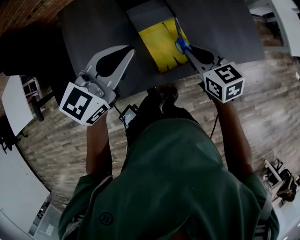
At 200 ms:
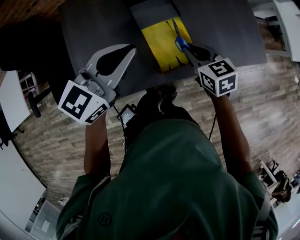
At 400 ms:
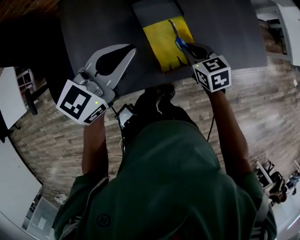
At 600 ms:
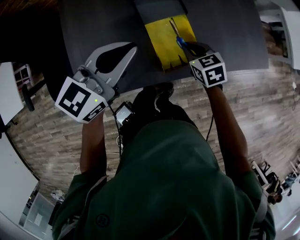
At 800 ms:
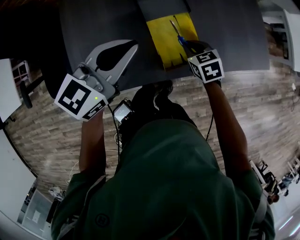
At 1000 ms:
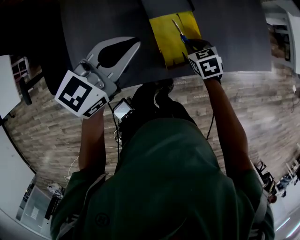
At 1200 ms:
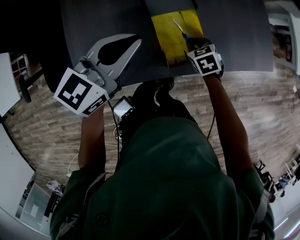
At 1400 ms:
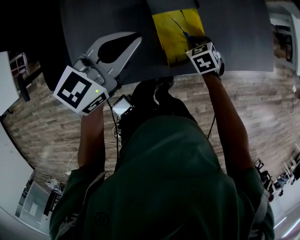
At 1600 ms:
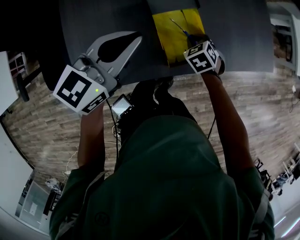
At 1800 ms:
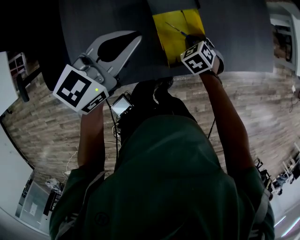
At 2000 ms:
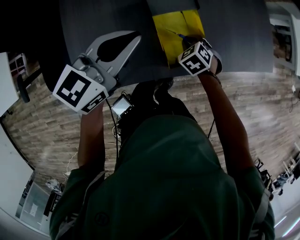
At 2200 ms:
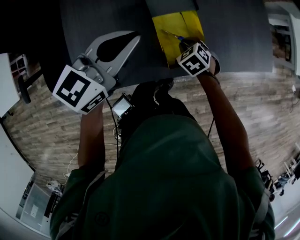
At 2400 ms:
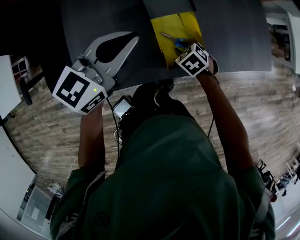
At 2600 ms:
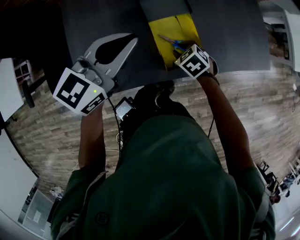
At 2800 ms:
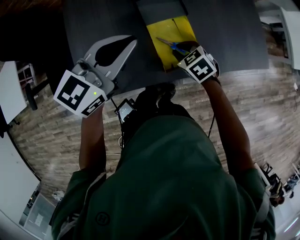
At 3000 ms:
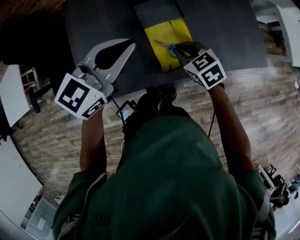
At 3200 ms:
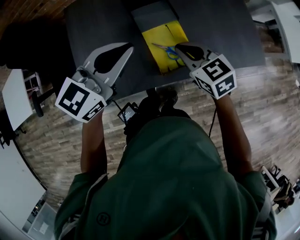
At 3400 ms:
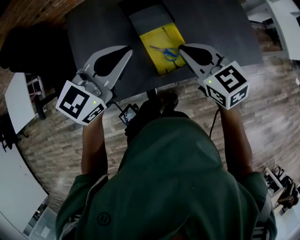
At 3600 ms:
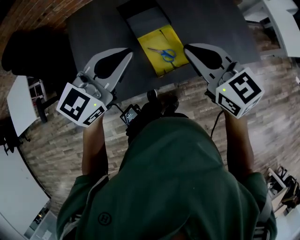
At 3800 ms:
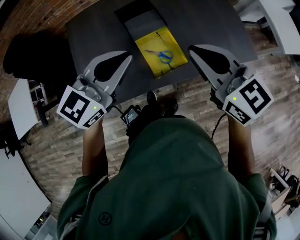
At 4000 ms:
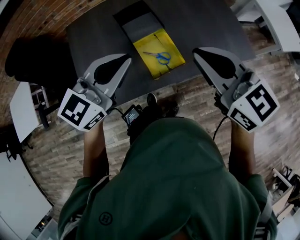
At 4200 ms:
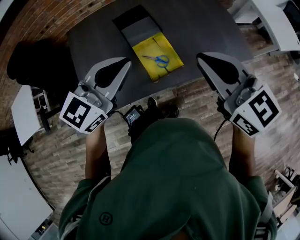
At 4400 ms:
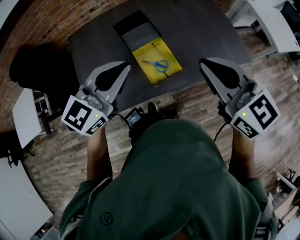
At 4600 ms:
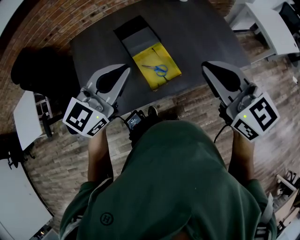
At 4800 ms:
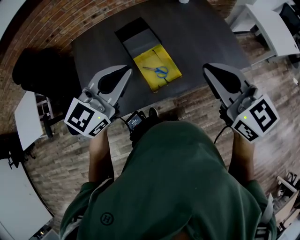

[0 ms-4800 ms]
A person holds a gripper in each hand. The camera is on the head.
0 ms to 1600 ms: The left gripper goes some 5 cm downward; the right gripper travels downward by some 20 cm, and tilts its fingers roughly 30 degrees downward.
1600 ms to 3200 ms: The right gripper heads upward, covering about 20 cm, and points its fingers roughly 30 degrees further upward; the left gripper heads upward, covering approximately 10 cm.
3200 ms to 4800 ms: The right gripper heads upward, to the right and backward, covering approximately 25 cm, and swivels roughly 30 degrees. Meanwhile the left gripper shifts approximately 10 cm upward, backward and to the right.

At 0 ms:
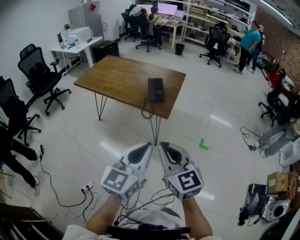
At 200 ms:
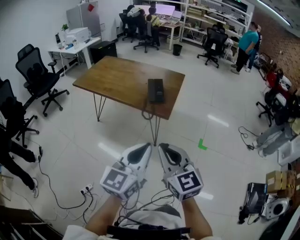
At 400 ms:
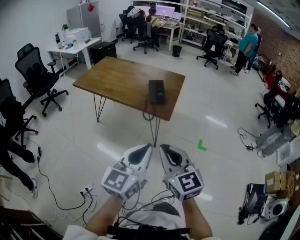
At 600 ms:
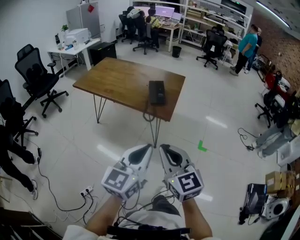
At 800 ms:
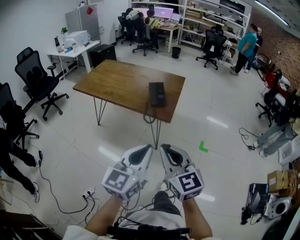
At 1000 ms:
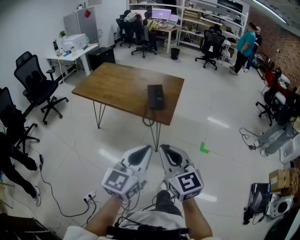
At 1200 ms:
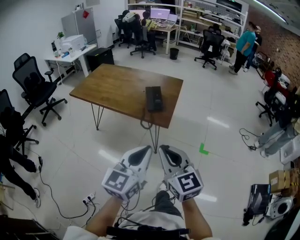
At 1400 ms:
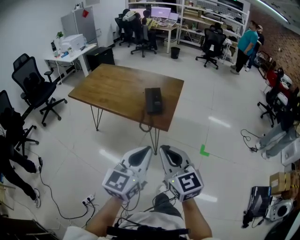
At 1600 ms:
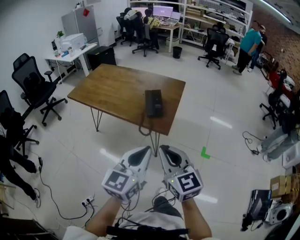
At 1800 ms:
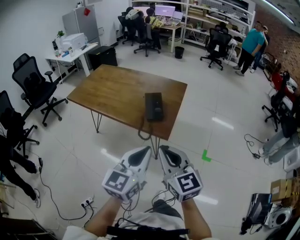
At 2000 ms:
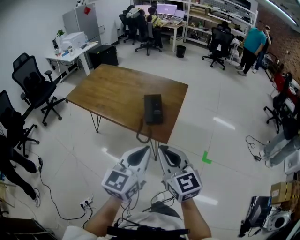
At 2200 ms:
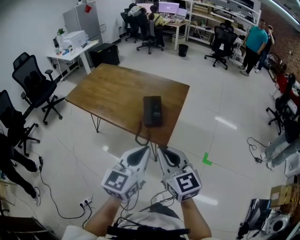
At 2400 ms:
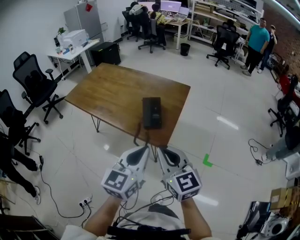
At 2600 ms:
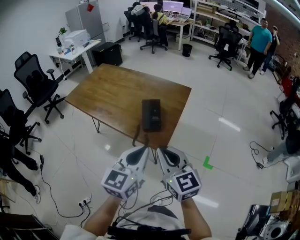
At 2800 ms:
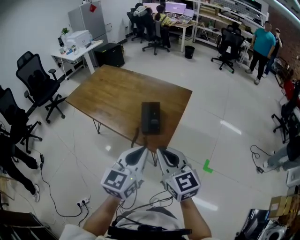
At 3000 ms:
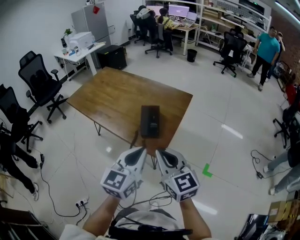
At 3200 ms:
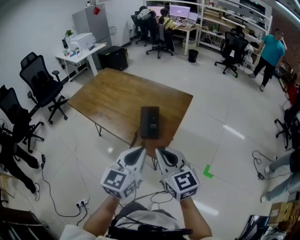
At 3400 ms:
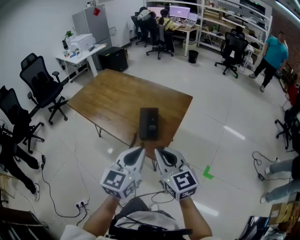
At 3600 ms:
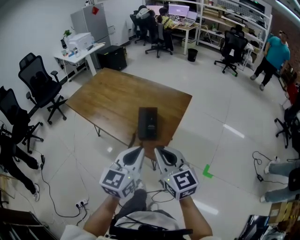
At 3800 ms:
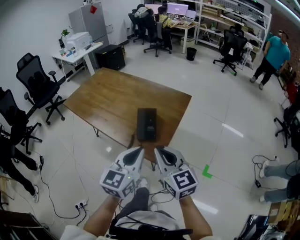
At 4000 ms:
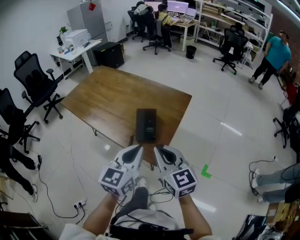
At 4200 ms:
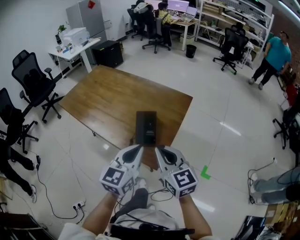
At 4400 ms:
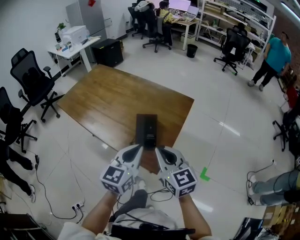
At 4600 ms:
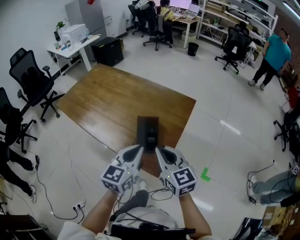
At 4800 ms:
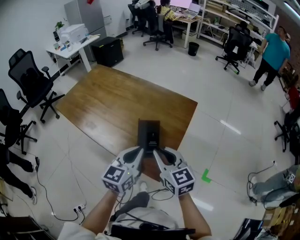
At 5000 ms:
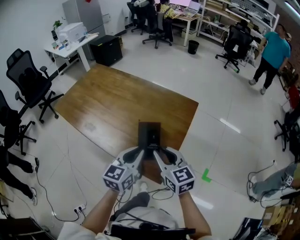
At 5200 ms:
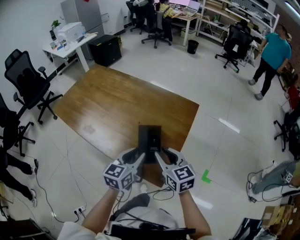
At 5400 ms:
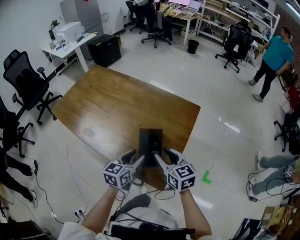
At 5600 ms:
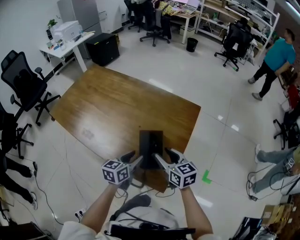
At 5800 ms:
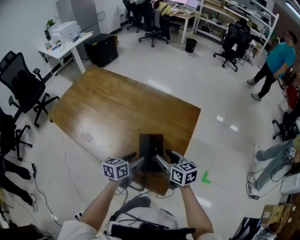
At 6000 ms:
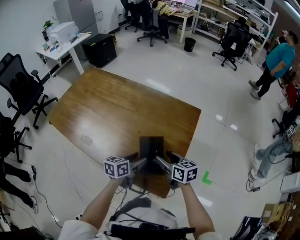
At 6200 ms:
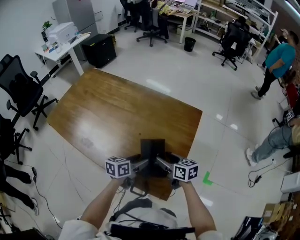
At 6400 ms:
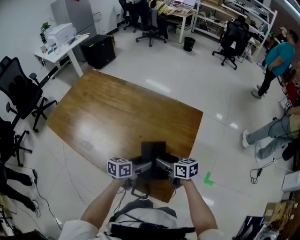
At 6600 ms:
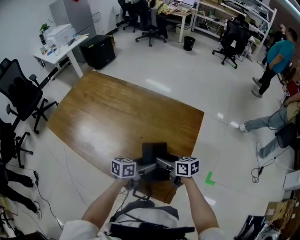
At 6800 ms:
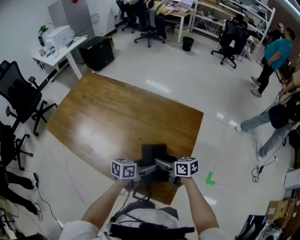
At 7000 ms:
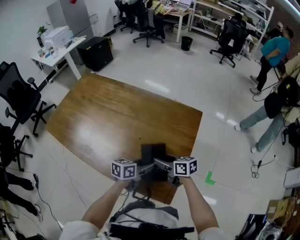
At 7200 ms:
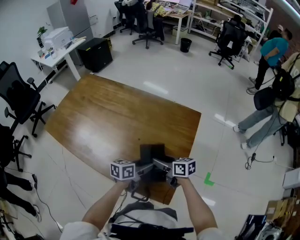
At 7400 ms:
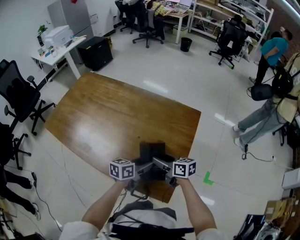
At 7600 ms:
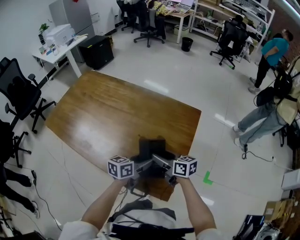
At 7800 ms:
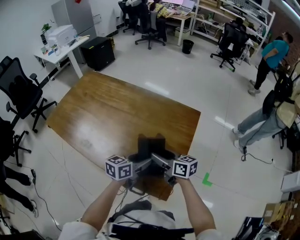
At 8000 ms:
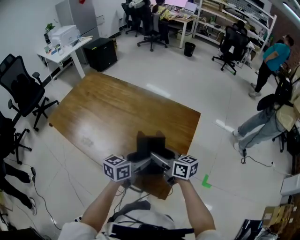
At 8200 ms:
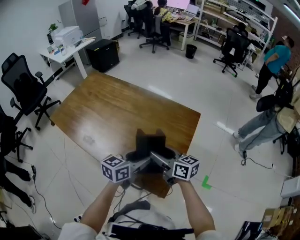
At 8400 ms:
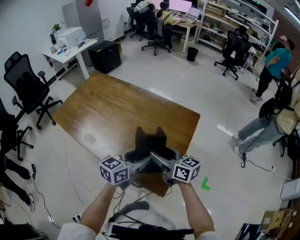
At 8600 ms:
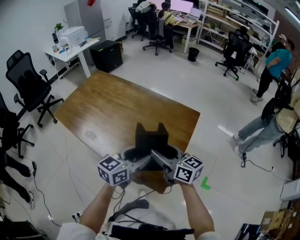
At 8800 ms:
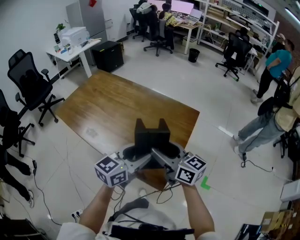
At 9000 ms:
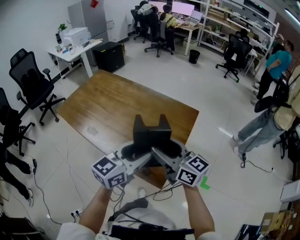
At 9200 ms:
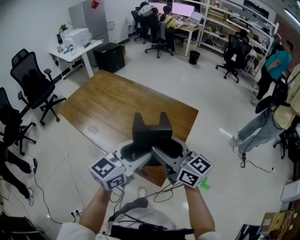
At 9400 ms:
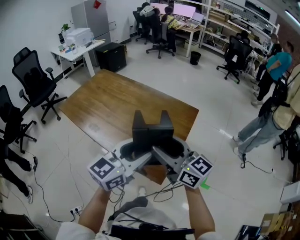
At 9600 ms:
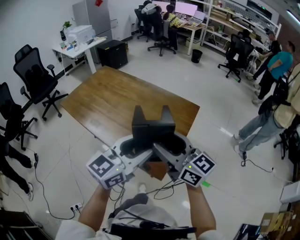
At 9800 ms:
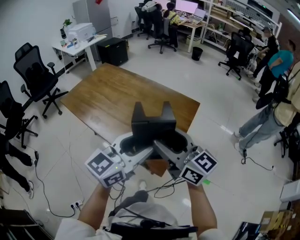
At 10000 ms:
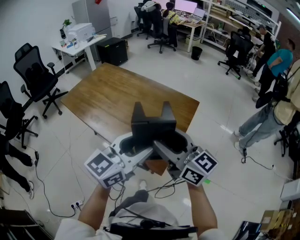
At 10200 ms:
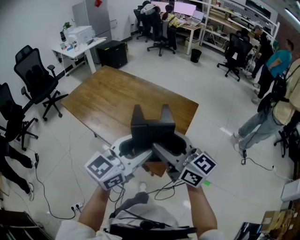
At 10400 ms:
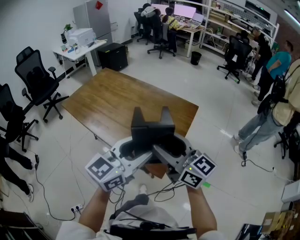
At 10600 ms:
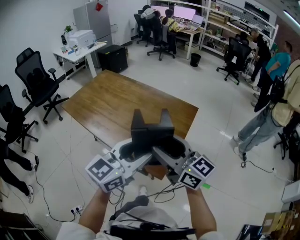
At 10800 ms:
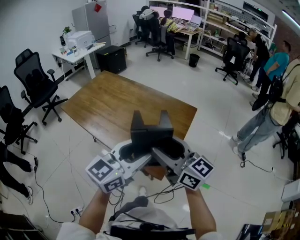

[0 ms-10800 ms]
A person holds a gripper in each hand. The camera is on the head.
0 ms to 1600 ms: Both grippers move forward, about 10 cm.
1600 ms to 3000 ms: Both grippers travel together forward, about 15 cm.
3000 ms to 4600 ms: The left gripper is displaced forward and downward by some 15 cm. The right gripper is displaced forward by approximately 15 cm.
4600 ms to 6200 ms: Both grippers travel together downward and forward, some 25 cm. The right gripper changes its angle by roughly 30 degrees, and opens, while the left gripper swivels about 40 degrees, and opens.
6200 ms to 7800 ms: Both grippers travel together upward, some 5 cm.
7800 ms to 9200 ms: Both grippers travel together upward and backward, about 25 cm. The right gripper changes its angle by some 30 degrees. The left gripper changes its angle by roughly 30 degrees.
9200 ms to 10800 ms: Both grippers travel together backward, roughly 5 cm.

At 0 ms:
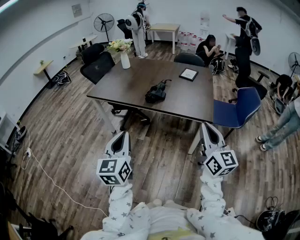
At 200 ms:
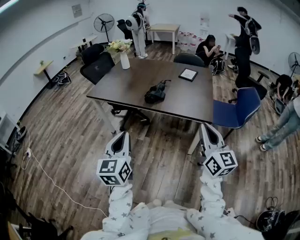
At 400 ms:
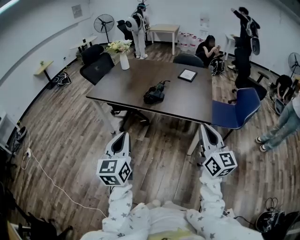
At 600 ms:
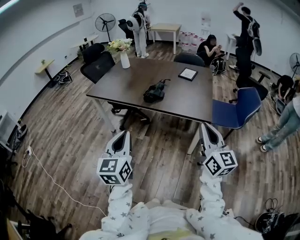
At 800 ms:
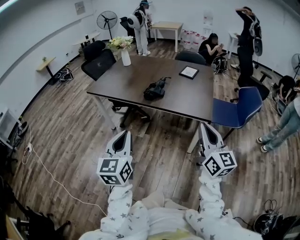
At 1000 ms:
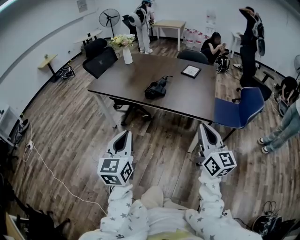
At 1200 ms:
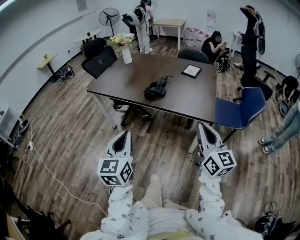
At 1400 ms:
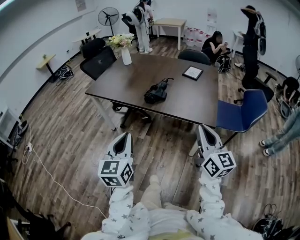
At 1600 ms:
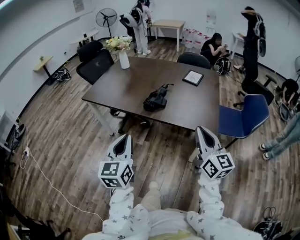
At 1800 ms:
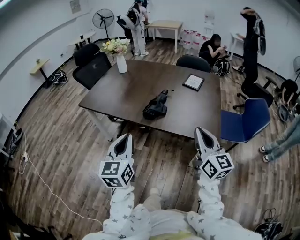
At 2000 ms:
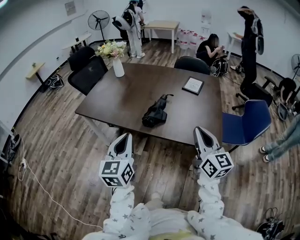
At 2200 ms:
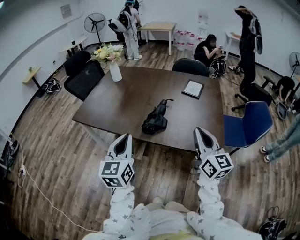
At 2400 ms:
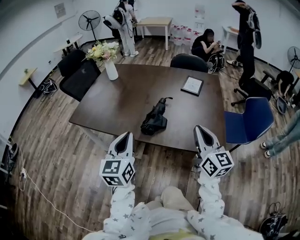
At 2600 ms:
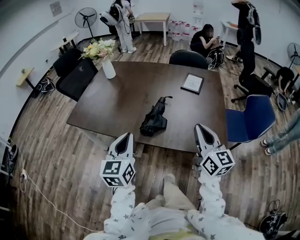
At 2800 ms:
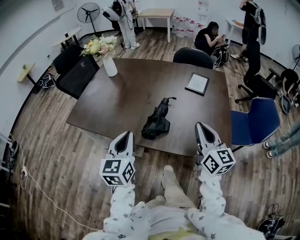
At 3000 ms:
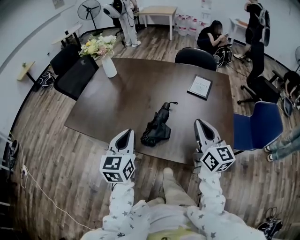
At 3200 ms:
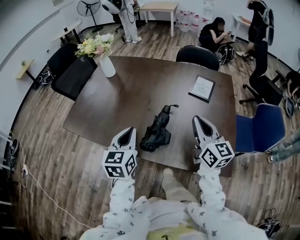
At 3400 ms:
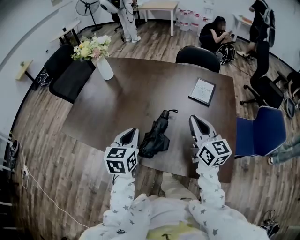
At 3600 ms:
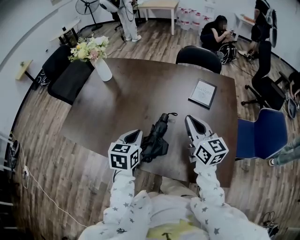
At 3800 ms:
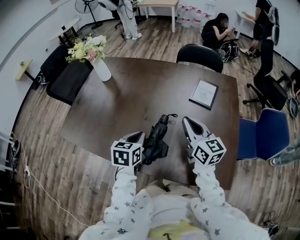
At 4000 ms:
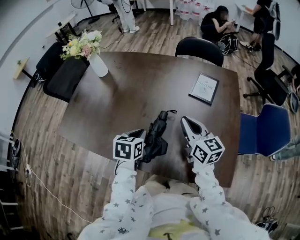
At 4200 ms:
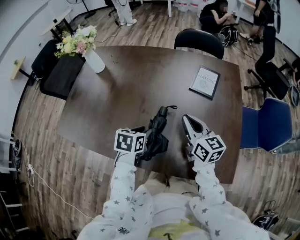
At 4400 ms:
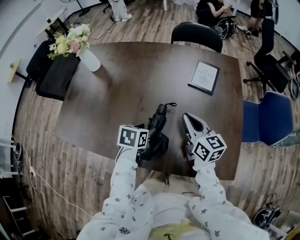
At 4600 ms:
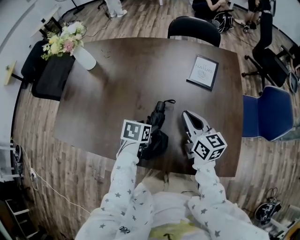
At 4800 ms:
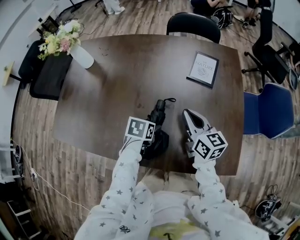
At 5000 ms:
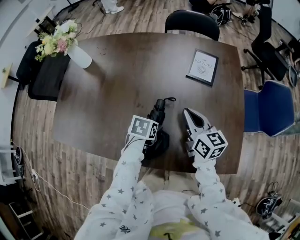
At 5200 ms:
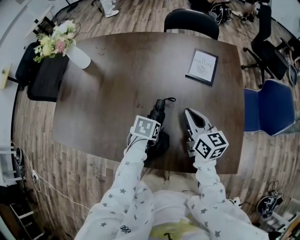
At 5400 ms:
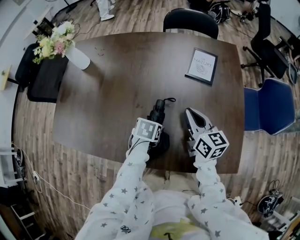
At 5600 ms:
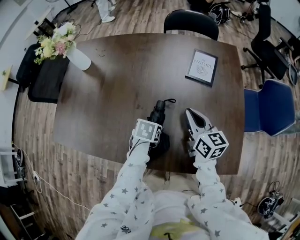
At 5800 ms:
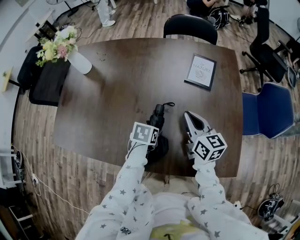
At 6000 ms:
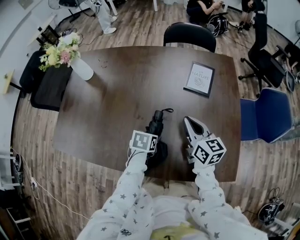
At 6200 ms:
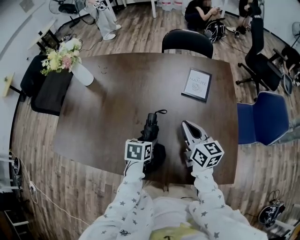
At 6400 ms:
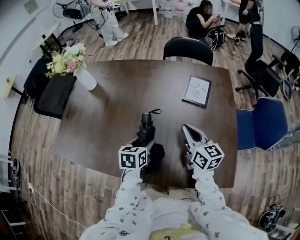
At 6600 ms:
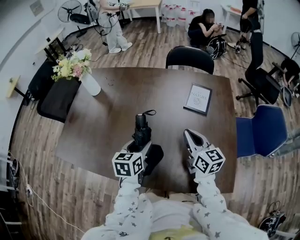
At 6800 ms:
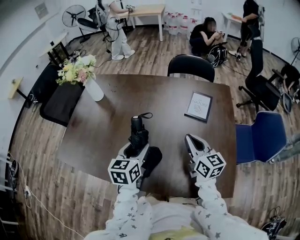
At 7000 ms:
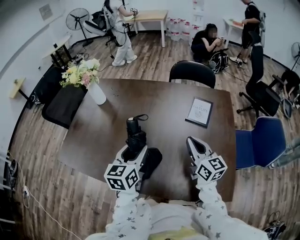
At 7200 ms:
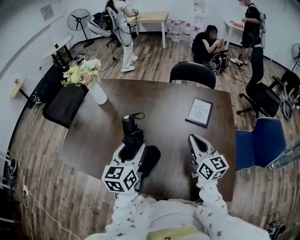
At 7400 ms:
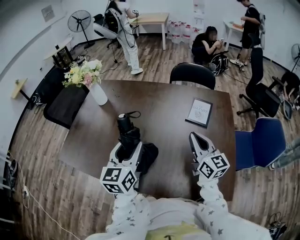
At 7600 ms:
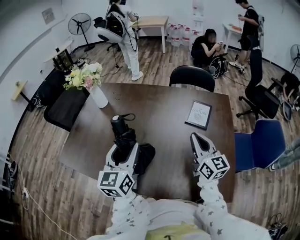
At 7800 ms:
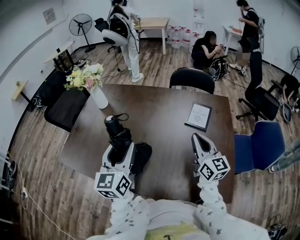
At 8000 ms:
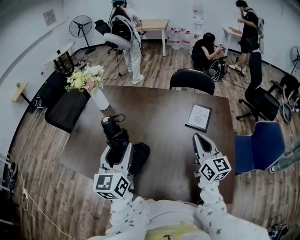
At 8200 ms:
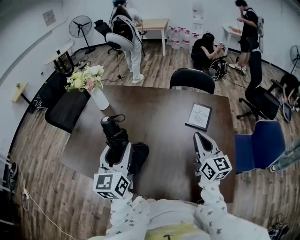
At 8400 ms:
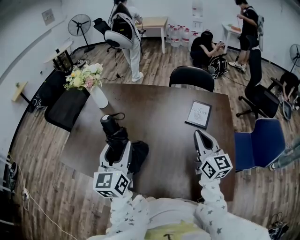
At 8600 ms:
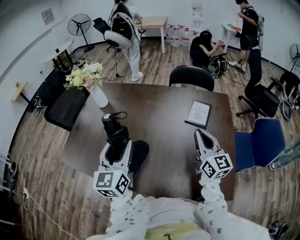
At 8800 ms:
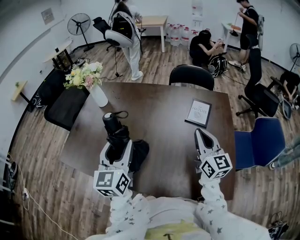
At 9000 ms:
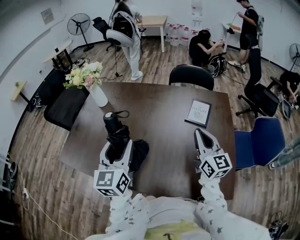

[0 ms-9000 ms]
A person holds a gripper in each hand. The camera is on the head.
0 ms to 1600 ms: Both grippers move forward, about 10 cm.
1600 ms to 3000 ms: The two grippers go about 30 cm forward.
3000 ms to 4400 ms: The left gripper travels downward, forward and to the right by about 25 cm, tips its fingers downward by some 40 degrees, and opens up. Meanwhile the right gripper shifts approximately 20 cm forward and downward.
4400 ms to 6000 ms: The left gripper is displaced downward by approximately 5 cm.
6000 ms to 7600 ms: The left gripper shifts some 30 cm upward, and tilts its fingers roughly 60 degrees upward; the right gripper travels upward by some 10 cm.
7600 ms to 9000 ms: The grippers stay close to where they were, moving slightly.
